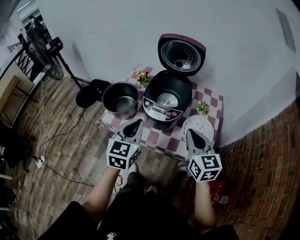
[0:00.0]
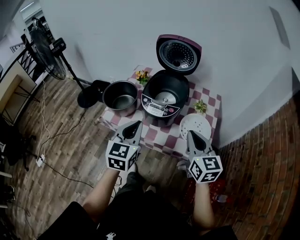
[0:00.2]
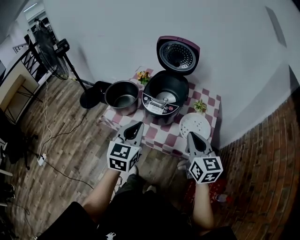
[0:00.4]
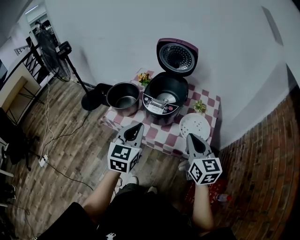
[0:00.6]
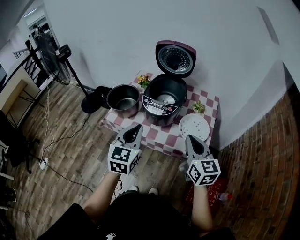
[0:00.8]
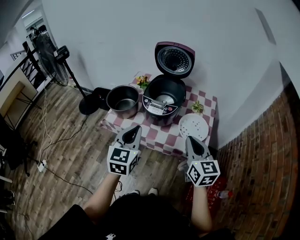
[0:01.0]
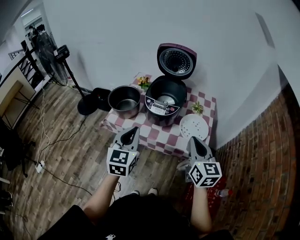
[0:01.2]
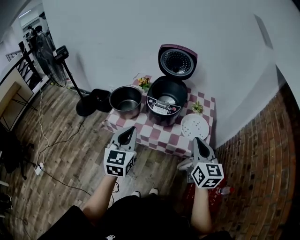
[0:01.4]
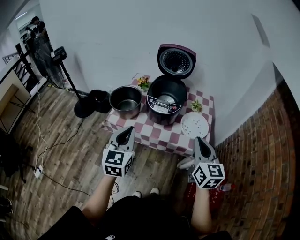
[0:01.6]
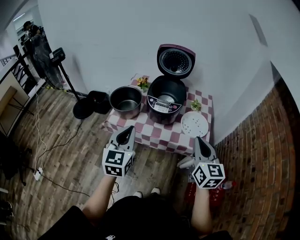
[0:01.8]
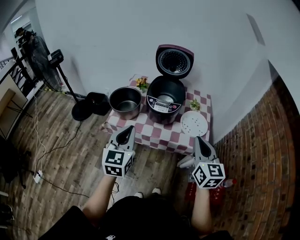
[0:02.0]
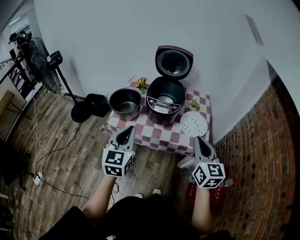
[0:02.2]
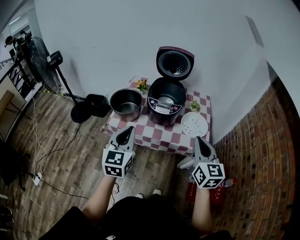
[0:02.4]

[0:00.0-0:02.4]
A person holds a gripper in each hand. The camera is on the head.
0:00.0 to 0:01.2: The grippers both shift backward by some 10 cm.
0:01.2 to 0:02.4: The left gripper is displaced to the left by about 5 cm. The right gripper changes place by roughly 5 cm.

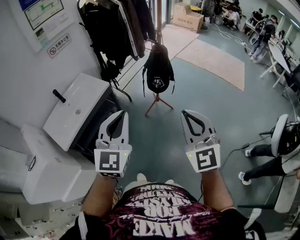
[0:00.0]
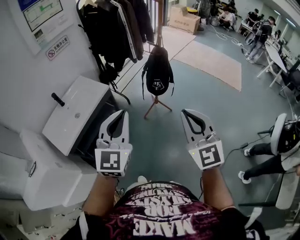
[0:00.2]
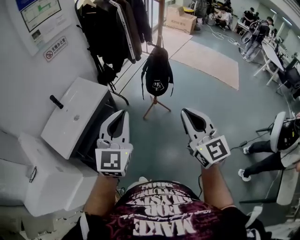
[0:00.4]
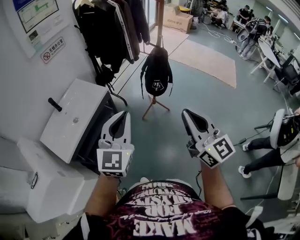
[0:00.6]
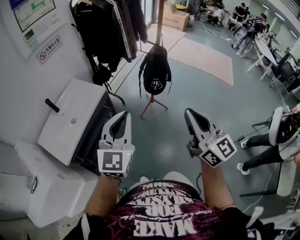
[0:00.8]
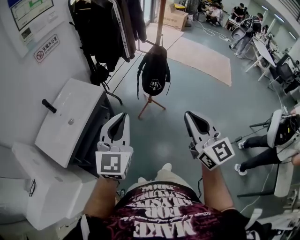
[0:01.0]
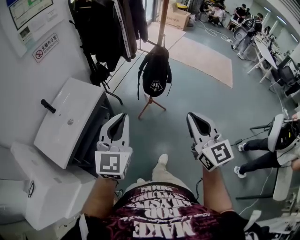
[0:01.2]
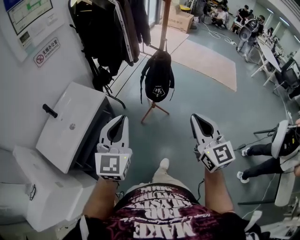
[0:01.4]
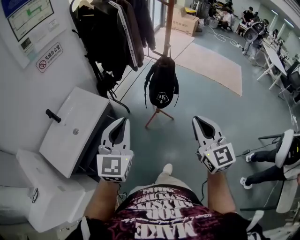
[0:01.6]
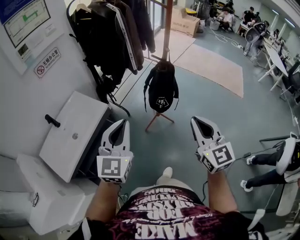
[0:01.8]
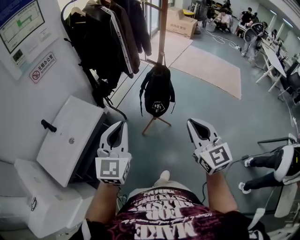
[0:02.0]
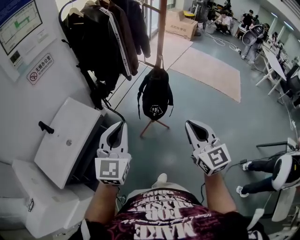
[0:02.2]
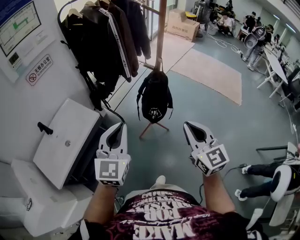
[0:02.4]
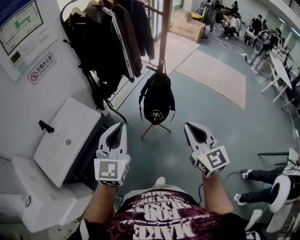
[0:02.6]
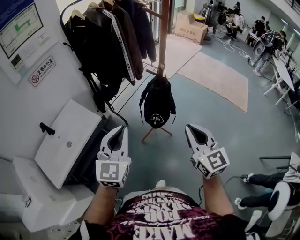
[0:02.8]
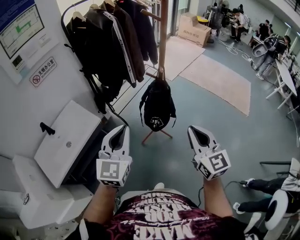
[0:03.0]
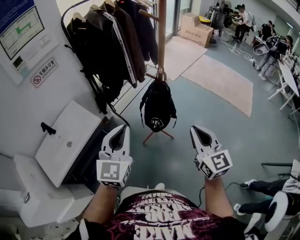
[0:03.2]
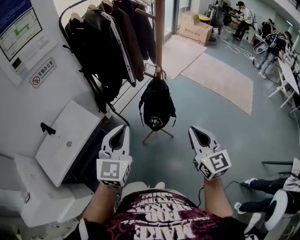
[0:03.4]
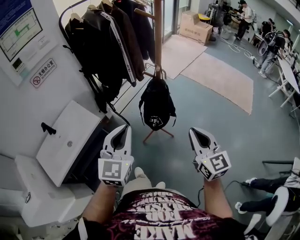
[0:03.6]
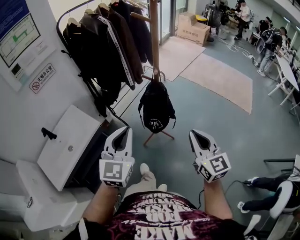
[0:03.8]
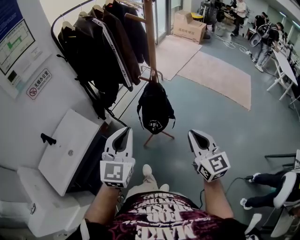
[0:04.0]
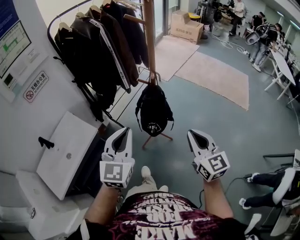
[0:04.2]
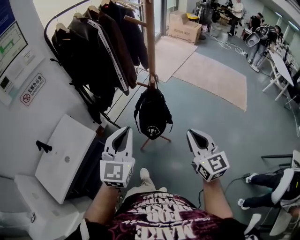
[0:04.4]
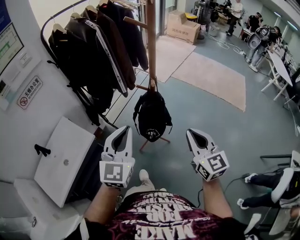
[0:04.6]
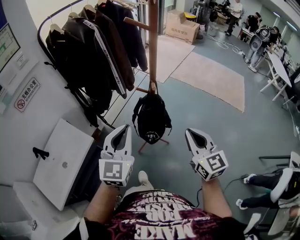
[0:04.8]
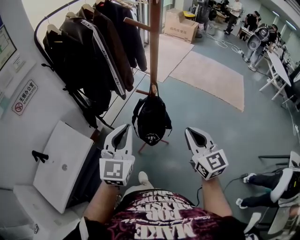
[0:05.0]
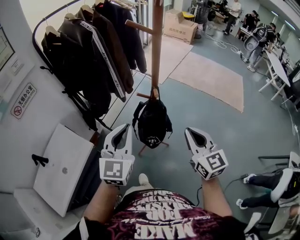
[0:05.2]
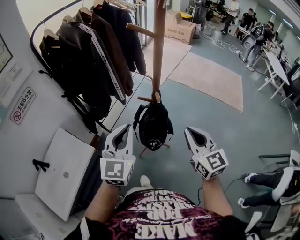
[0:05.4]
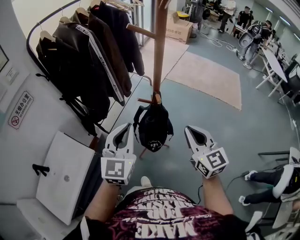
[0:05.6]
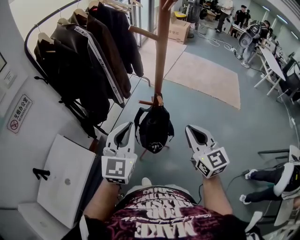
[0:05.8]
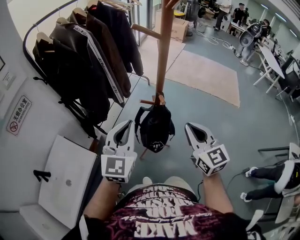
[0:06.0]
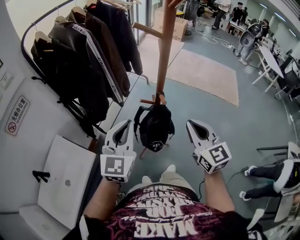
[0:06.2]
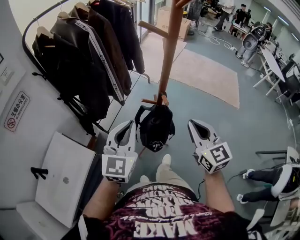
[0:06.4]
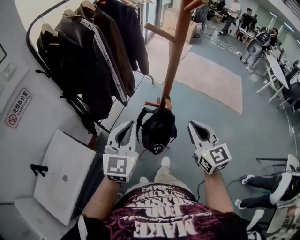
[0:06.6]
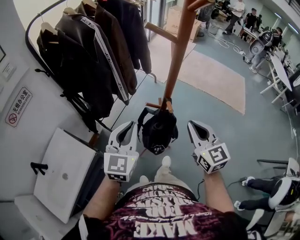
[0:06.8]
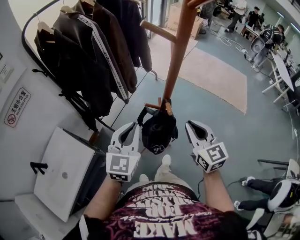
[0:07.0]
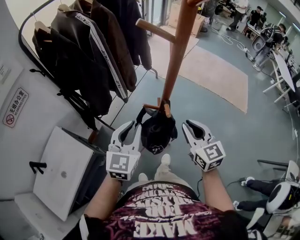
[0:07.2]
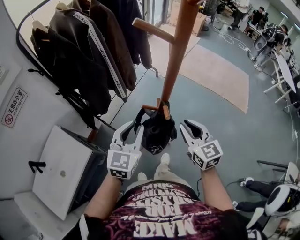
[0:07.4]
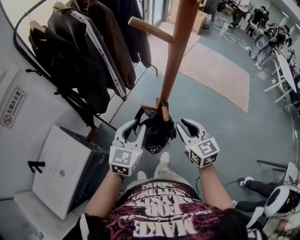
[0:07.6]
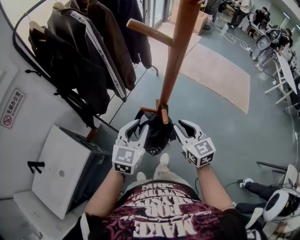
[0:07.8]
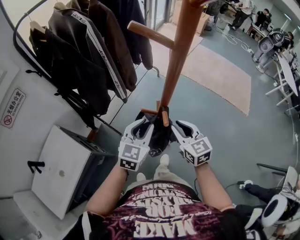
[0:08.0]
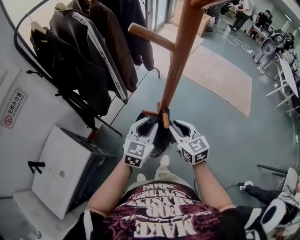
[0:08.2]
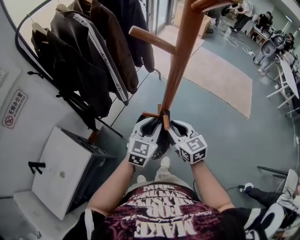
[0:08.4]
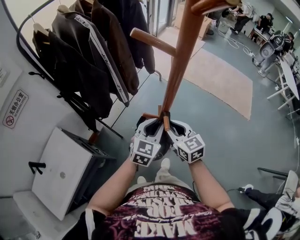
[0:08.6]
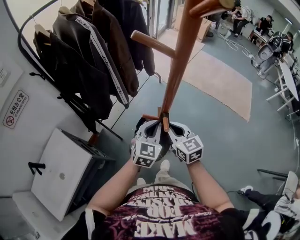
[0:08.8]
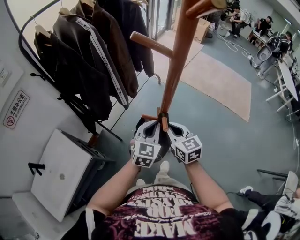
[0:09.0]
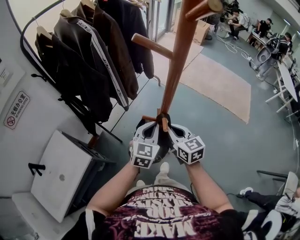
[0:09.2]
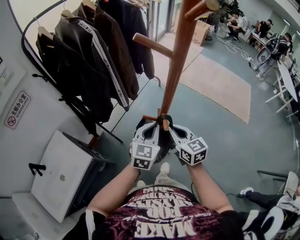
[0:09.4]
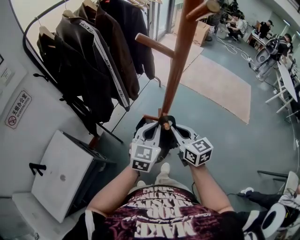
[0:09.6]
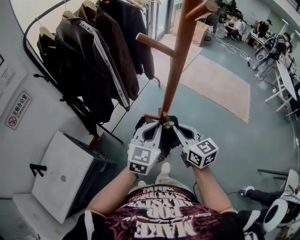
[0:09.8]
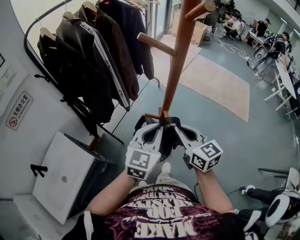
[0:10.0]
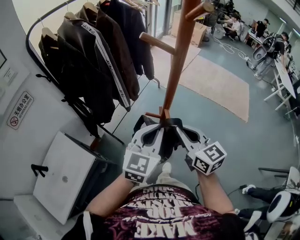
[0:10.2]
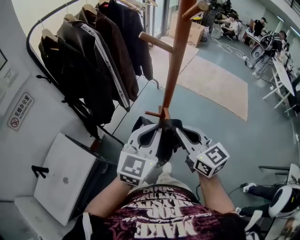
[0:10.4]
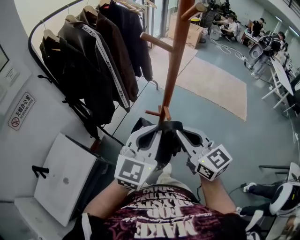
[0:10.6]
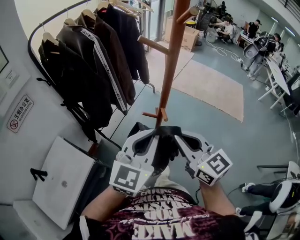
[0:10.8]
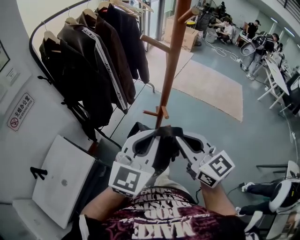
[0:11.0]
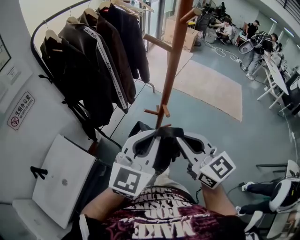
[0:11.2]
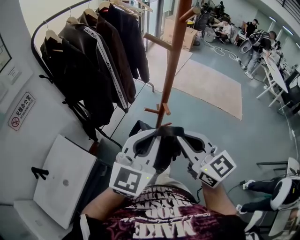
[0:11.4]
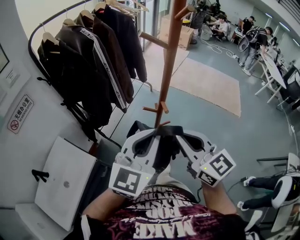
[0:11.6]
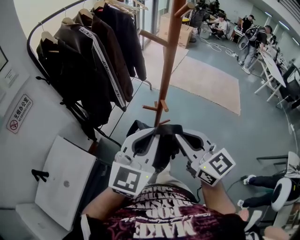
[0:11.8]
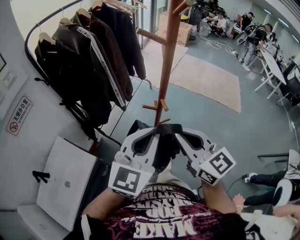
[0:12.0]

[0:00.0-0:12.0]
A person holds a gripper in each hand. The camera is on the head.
0:00.0 to 0:01.6: The left gripper shifts some 15 cm forward and to the left, while the right gripper travels forward by roughly 15 cm, and changes its angle by roughly 20 degrees.
0:01.6 to 0:03.0: Both grippers travel together forward and to the right, roughly 20 cm.
0:03.0 to 0:04.4: Both grippers travel together forward, roughly 5 cm.
0:04.4 to 0:06.0: The left gripper goes roughly 15 cm forward. Meanwhile the right gripper goes about 15 cm forward and to the left.
0:06.0 to 0:07.6: The left gripper travels downward and forward by approximately 15 cm, and opens; the right gripper heads forward and downward, covering approximately 15 cm, and opens its fingers.
0:07.6 to 0:09.0: The left gripper goes some 10 cm to the right and forward, and closes, while the right gripper travels forward by about 5 cm.
0:09.0 to 0:10.4: Both grippers travel together upward and backward, some 15 cm.
0:10.4 to 0:12.0: The two grippers go roughly 10 cm backward and upward.

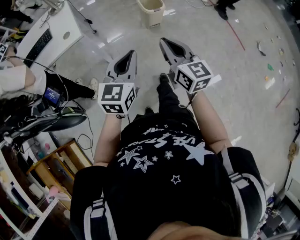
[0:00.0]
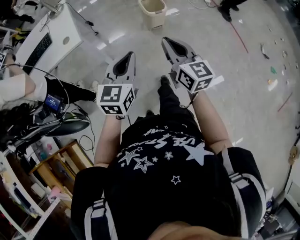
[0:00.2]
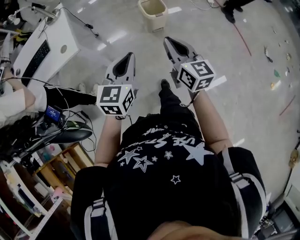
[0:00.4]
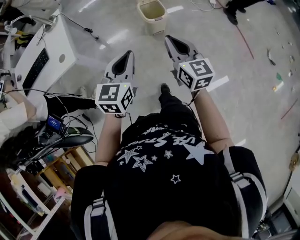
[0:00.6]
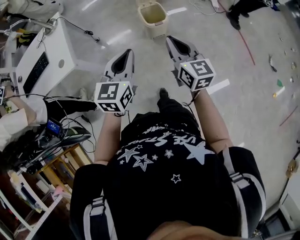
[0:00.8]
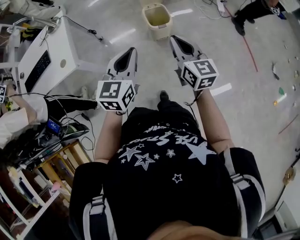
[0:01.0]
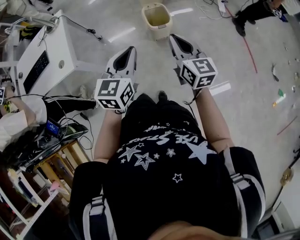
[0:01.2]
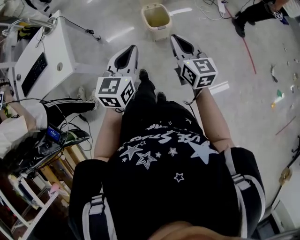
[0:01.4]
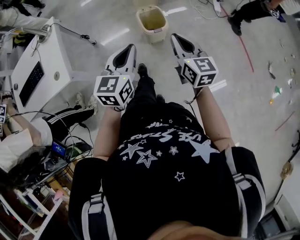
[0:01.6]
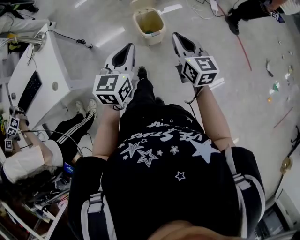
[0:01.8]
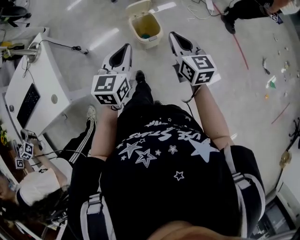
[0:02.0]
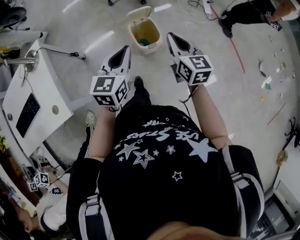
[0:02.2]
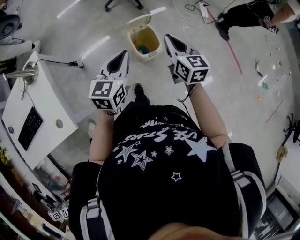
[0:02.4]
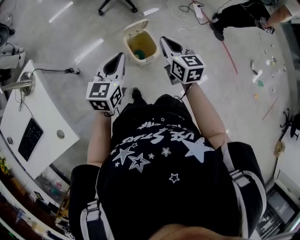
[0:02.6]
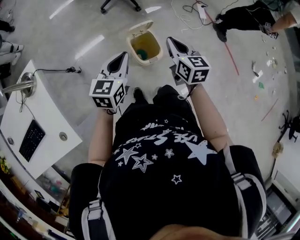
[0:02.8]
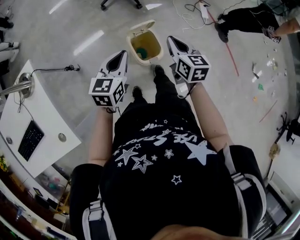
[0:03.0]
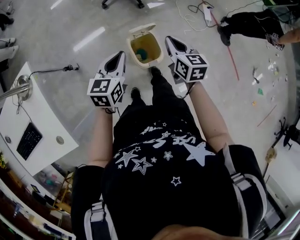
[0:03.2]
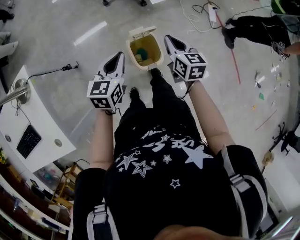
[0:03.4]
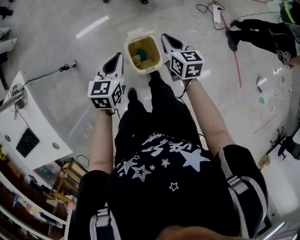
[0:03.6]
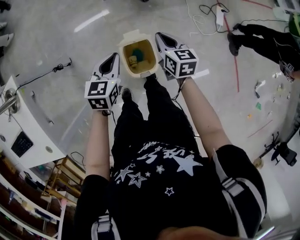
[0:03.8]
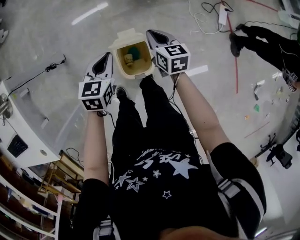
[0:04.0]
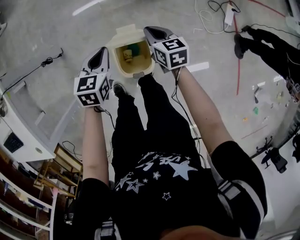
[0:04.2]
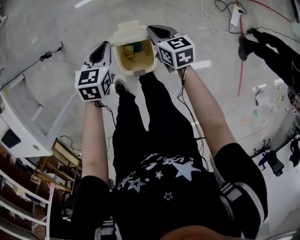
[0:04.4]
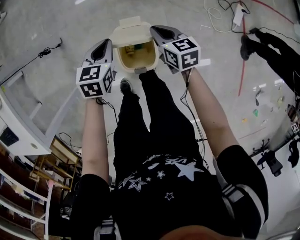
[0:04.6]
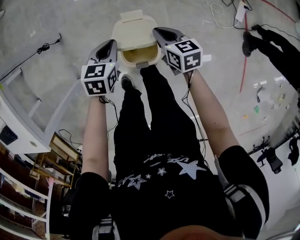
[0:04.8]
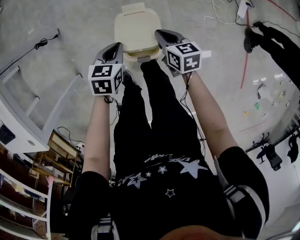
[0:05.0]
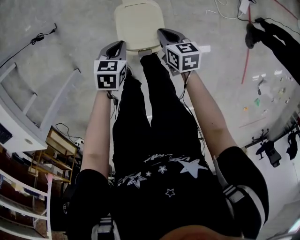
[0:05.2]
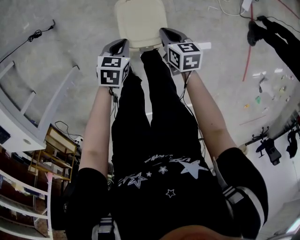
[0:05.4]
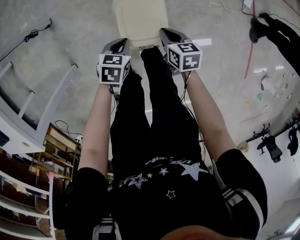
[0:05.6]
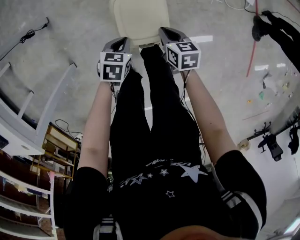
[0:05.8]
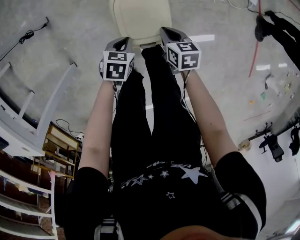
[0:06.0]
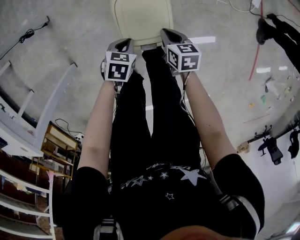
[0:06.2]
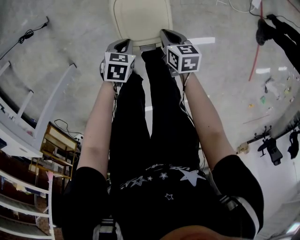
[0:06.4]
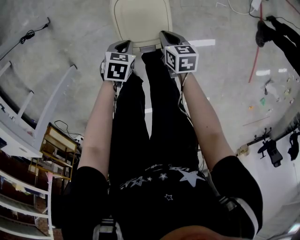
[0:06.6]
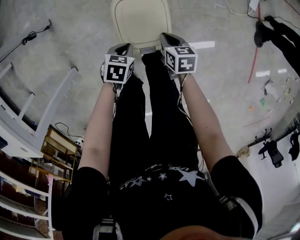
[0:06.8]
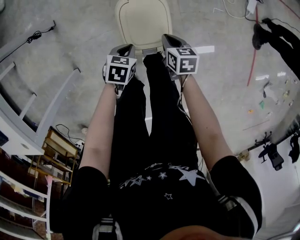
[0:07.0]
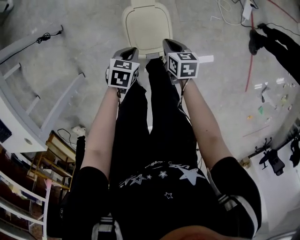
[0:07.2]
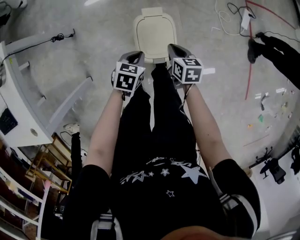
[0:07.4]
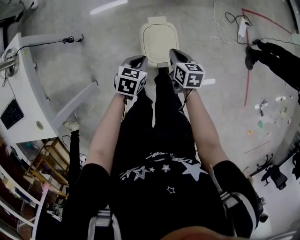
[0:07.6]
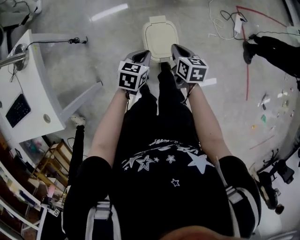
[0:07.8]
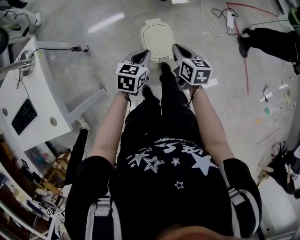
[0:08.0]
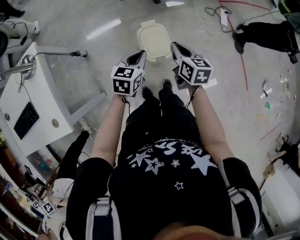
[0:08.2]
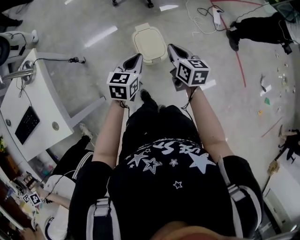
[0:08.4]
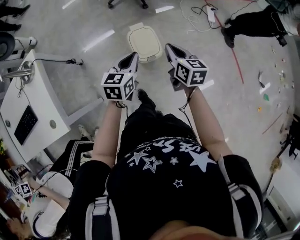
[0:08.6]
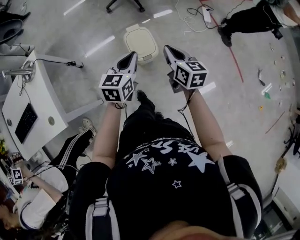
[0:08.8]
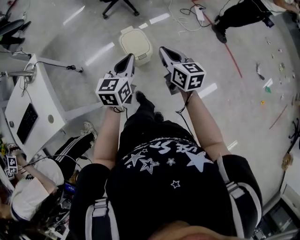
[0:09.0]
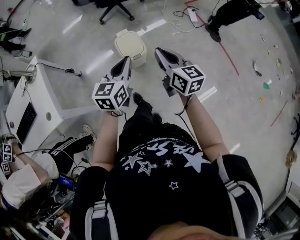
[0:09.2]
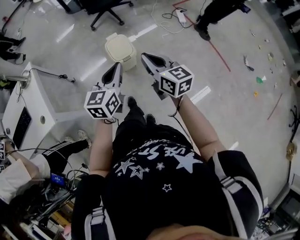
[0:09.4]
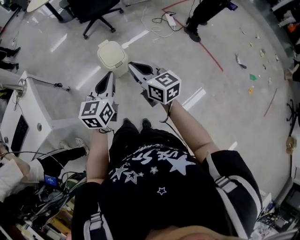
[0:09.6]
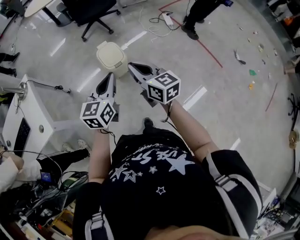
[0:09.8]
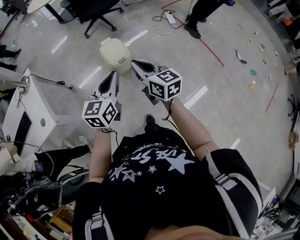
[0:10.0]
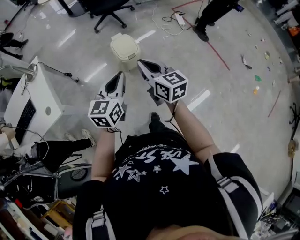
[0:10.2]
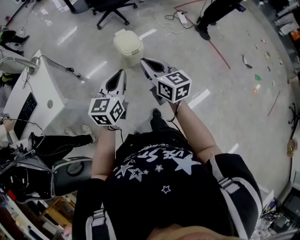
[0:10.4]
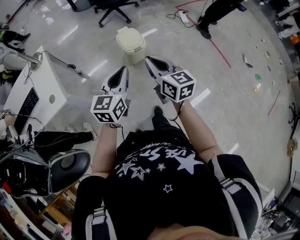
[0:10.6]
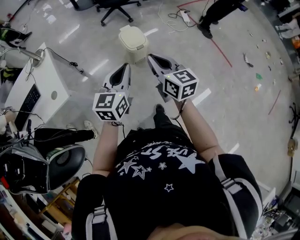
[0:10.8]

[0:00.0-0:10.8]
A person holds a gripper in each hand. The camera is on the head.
0:00.0 to 0:01.6: The left gripper heads forward, covering roughly 35 cm. Meanwhile the right gripper shifts about 40 cm forward and to the right.
0:01.6 to 0:03.0: The two grippers go some 30 cm forward.
0:03.0 to 0:04.6: Both grippers move downward, roughly 25 cm. The right gripper swivels some 40 degrees. Meanwhile the left gripper turns by roughly 30 degrees.
0:04.6 to 0:06.2: The grippers both shift downward and backward by approximately 25 cm. The left gripper changes its angle by roughly 20 degrees.
0:06.2 to 0:07.8: Both grippers move upward, roughly 30 cm. The left gripper turns by approximately 20 degrees.
0:07.8 to 0:09.2: The two grippers go roughly 40 cm backward, upward and to the right. The left gripper changes its angle by about 30 degrees. The right gripper points its fingers roughly 30 degrees further upward.
0:09.2 to 0:10.8: The two grippers go some 25 cm backward and to the left.
